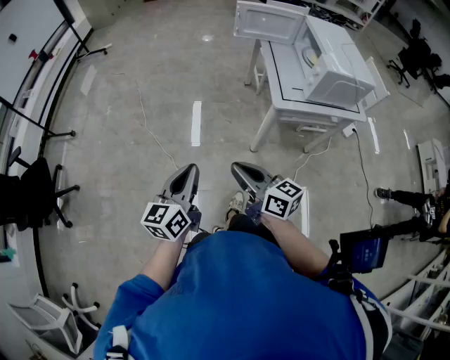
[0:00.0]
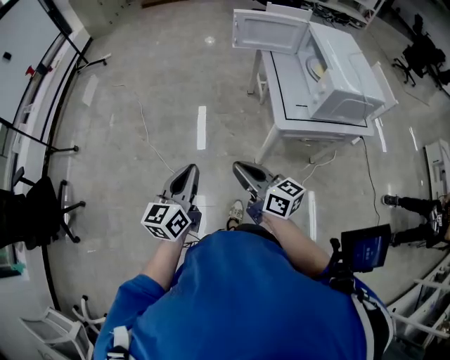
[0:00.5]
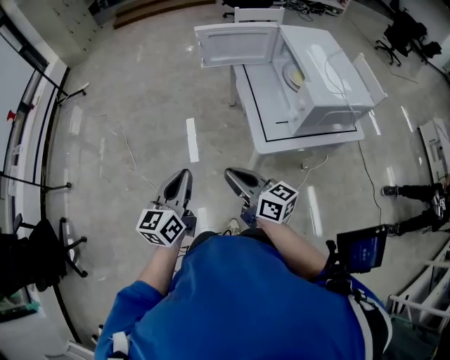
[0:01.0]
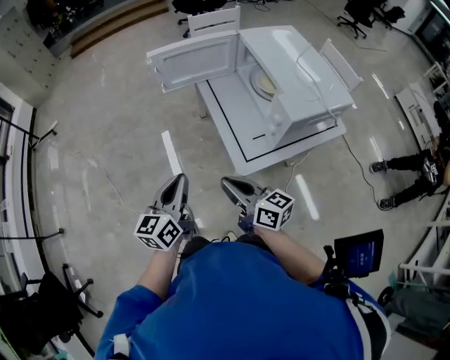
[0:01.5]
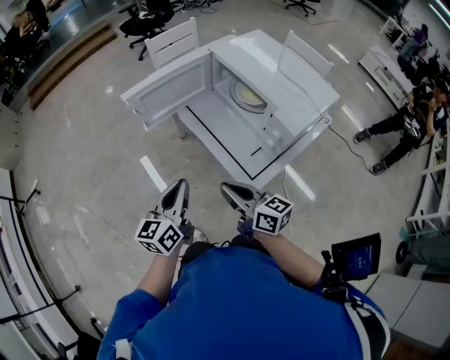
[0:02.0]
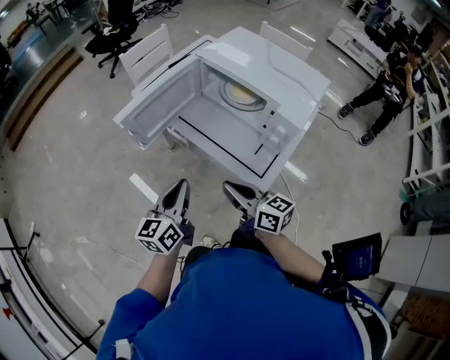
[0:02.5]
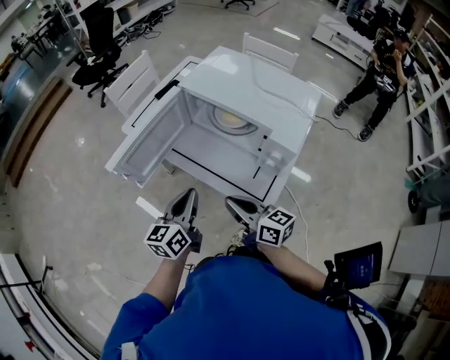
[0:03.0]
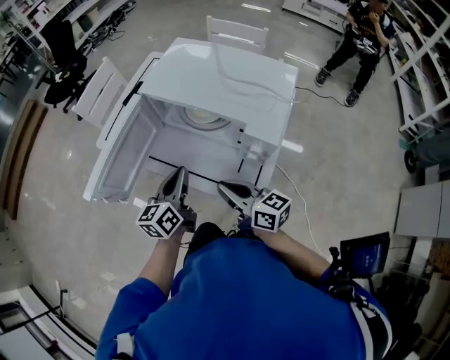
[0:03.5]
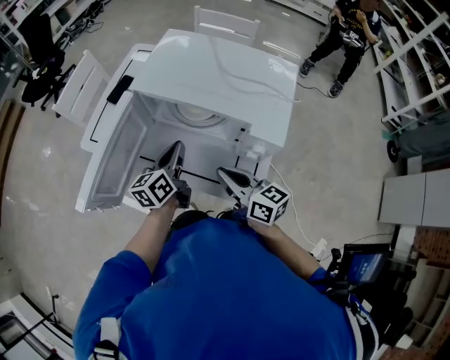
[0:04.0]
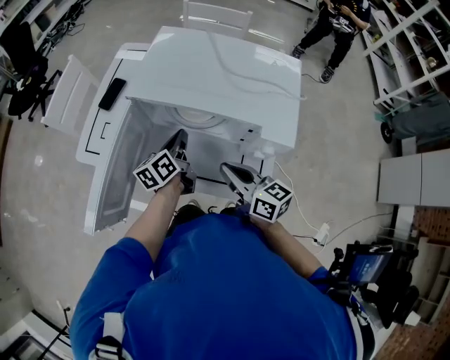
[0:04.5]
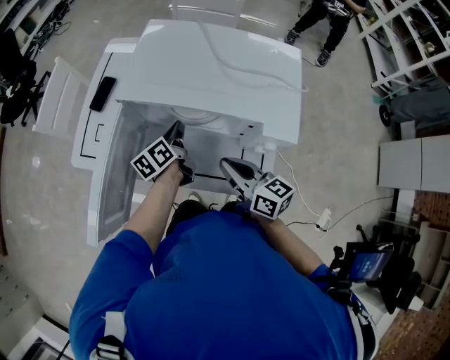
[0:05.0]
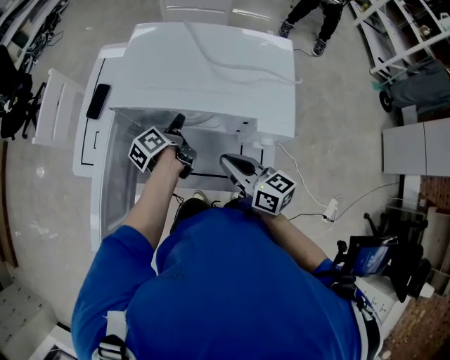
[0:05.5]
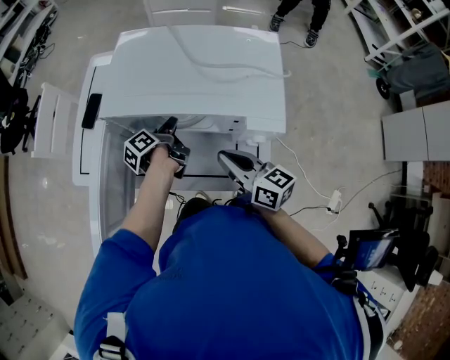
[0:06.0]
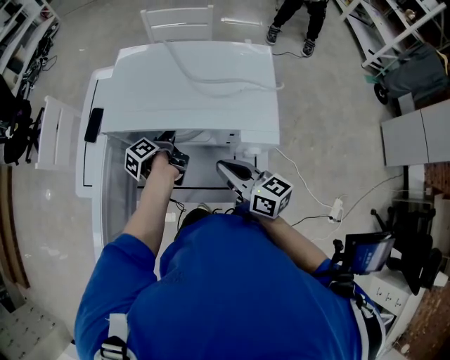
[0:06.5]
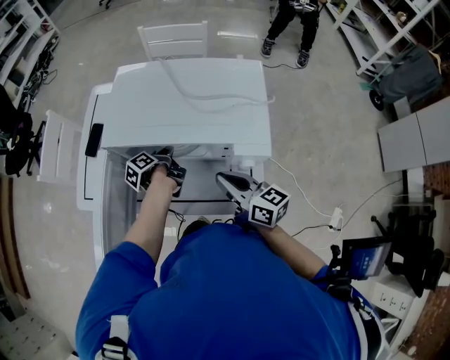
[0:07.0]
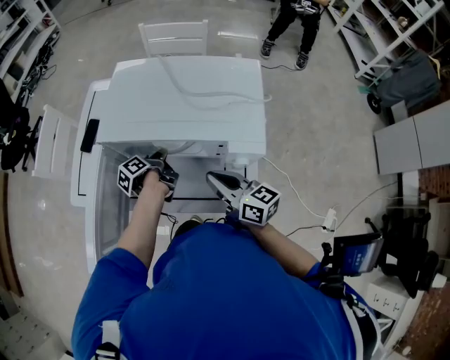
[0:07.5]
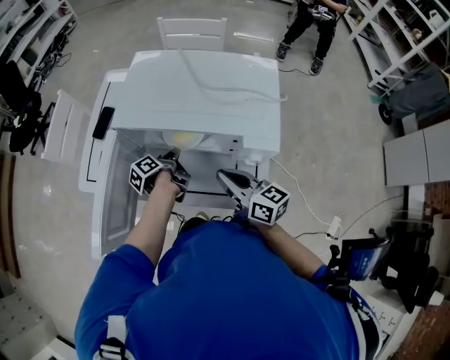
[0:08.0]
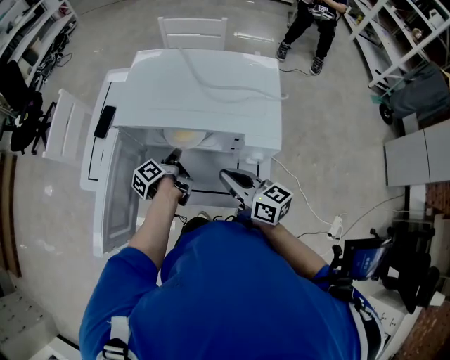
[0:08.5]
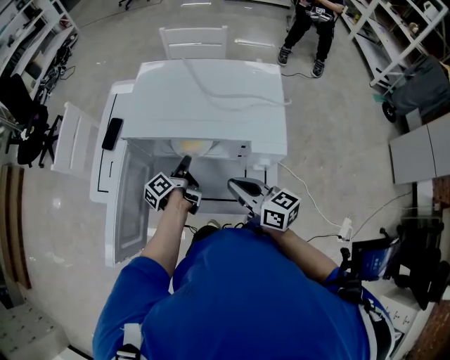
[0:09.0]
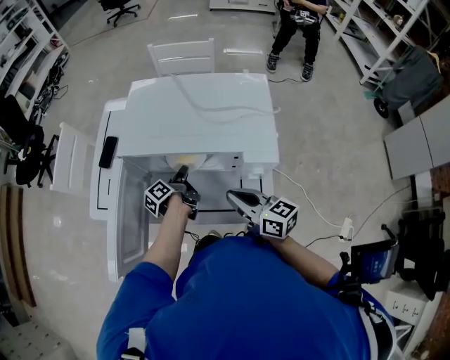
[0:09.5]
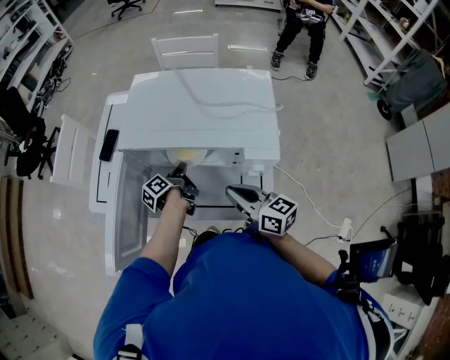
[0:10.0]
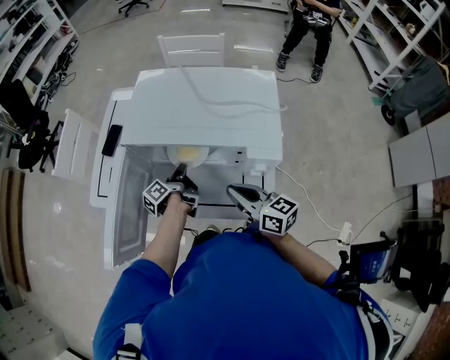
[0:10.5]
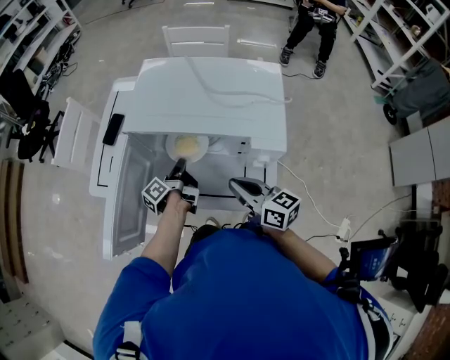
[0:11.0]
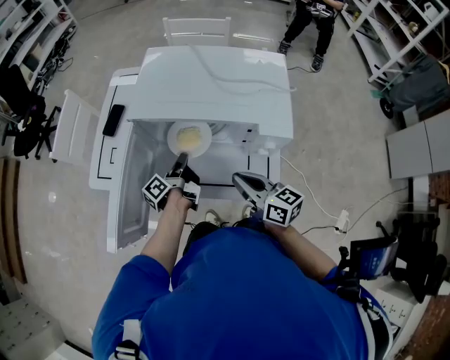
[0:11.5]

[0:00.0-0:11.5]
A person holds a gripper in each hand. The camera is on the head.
0:00.0 to 0:02.0: The two grippers travel together, about 50 cm. The left gripper swivels approximately 40 degrees, while the right gripper changes its angle by roughly 40 degrees.
0:02.0 to 0:04.0: The right gripper moves some 20 cm, and changes its angle by about 40 degrees, while the left gripper shifts by some 30 cm, and turns by about 30 degrees.
0:04.0 to 0:06.0: The left gripper moves forward and downward, about 15 cm, rotates around the line of its fingers by some 40 degrees, counterclockwise from behind, and opens its fingers.
0:06.0 to 0:07.5: The left gripper closes up.
0:07.5 to 0:09.5: The left gripper opens up.
0:09.5 to 0:11.5: The left gripper shifts by roughly 5 cm, and closes its fingers.

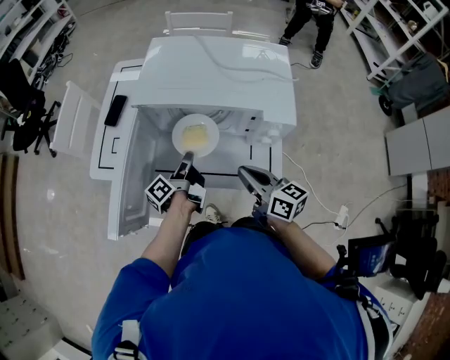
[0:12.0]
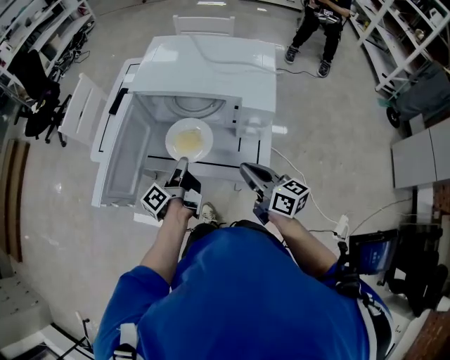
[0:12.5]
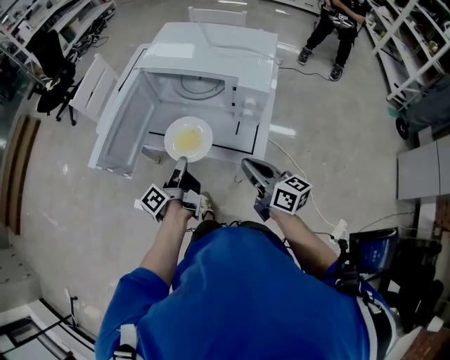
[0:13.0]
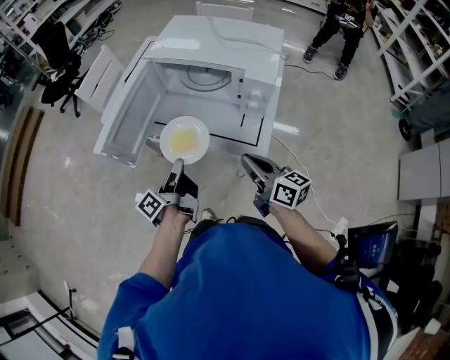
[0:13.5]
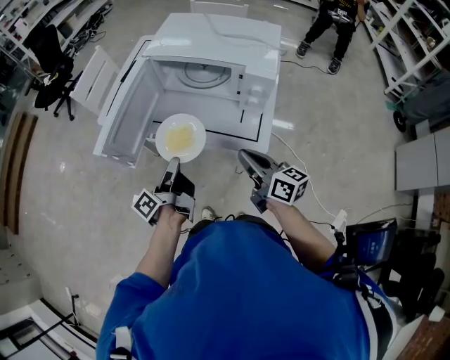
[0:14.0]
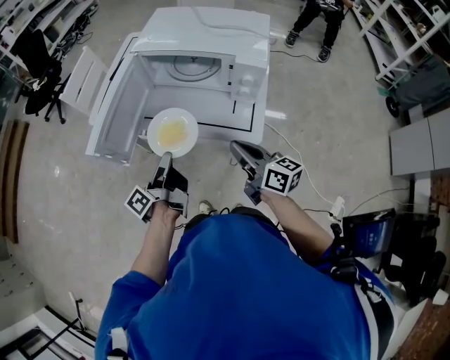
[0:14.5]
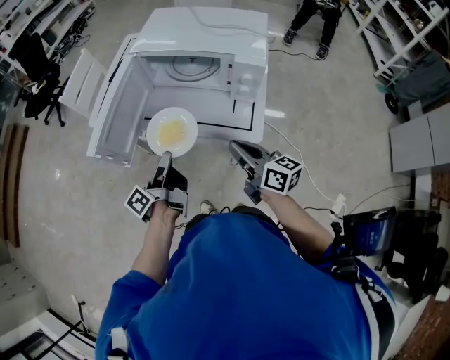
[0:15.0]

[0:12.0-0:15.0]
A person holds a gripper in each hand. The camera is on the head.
0:12.0 to 0:13.5: The right gripper heads backward, covering roughly 10 cm, while the left gripper heads backward, covering some 20 cm.
0:13.5 to 0:15.0: The grippers stay close to where they were, moving slightly.

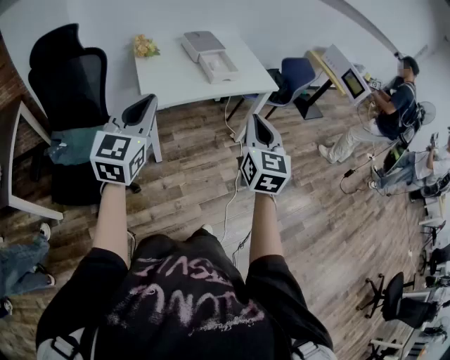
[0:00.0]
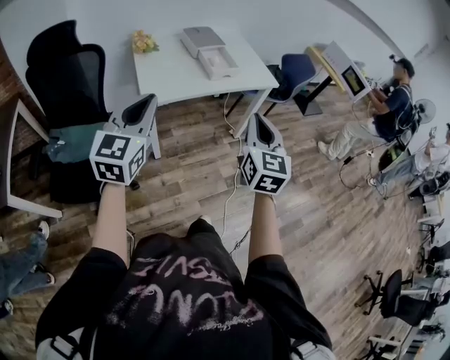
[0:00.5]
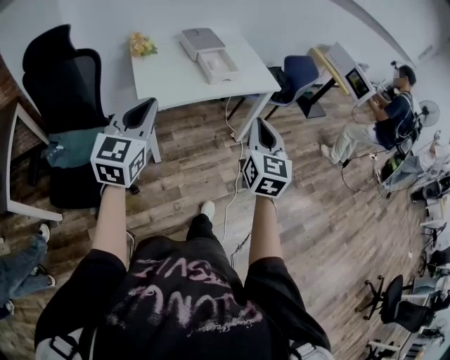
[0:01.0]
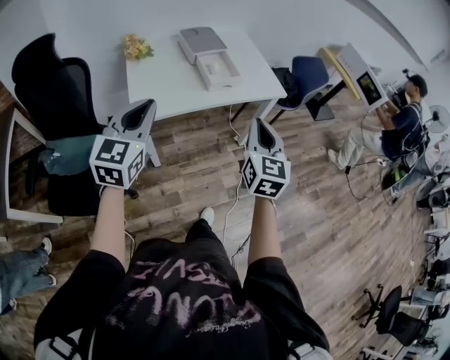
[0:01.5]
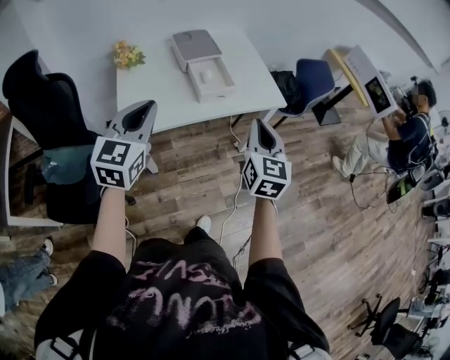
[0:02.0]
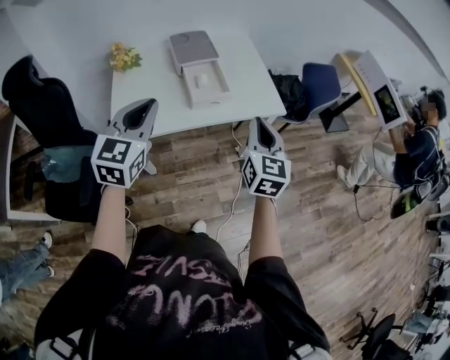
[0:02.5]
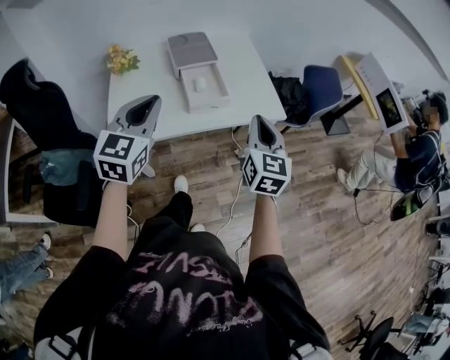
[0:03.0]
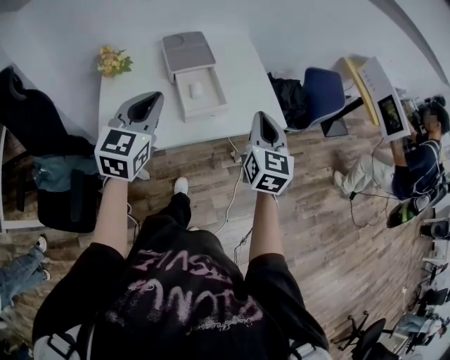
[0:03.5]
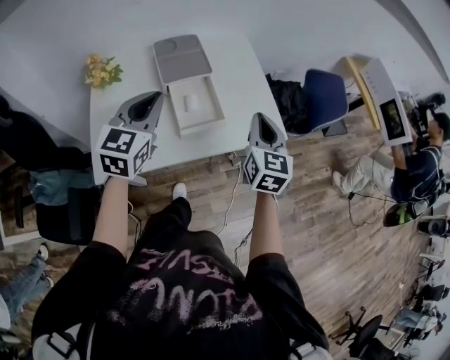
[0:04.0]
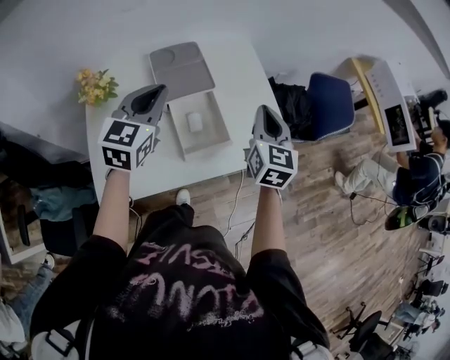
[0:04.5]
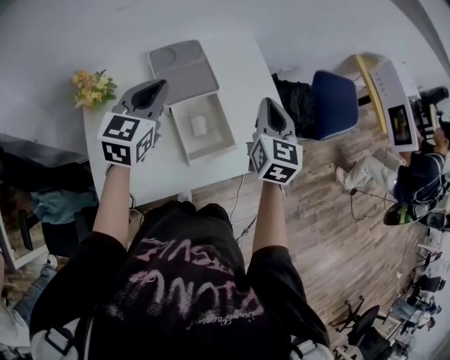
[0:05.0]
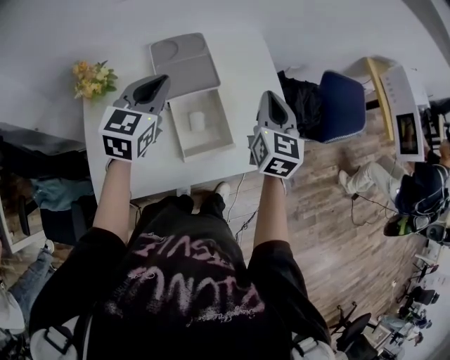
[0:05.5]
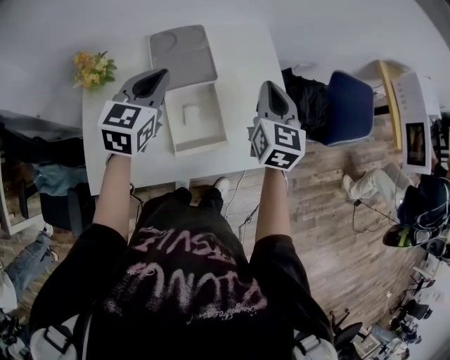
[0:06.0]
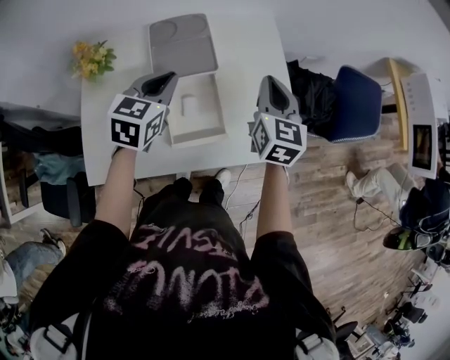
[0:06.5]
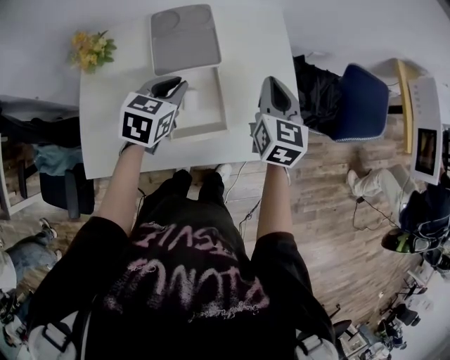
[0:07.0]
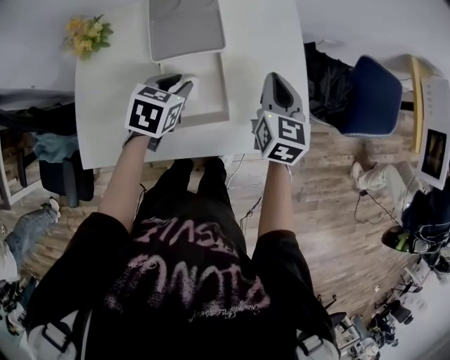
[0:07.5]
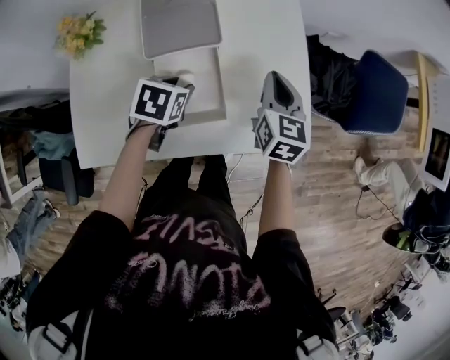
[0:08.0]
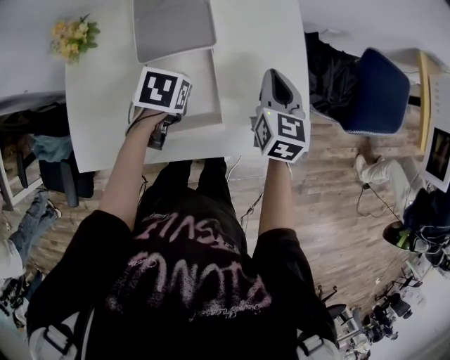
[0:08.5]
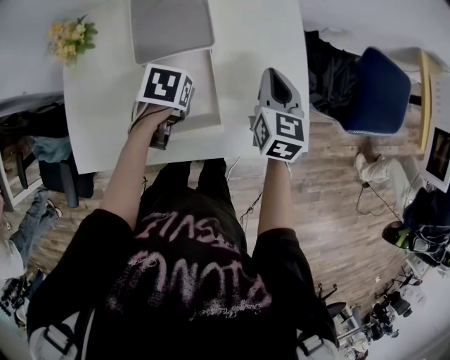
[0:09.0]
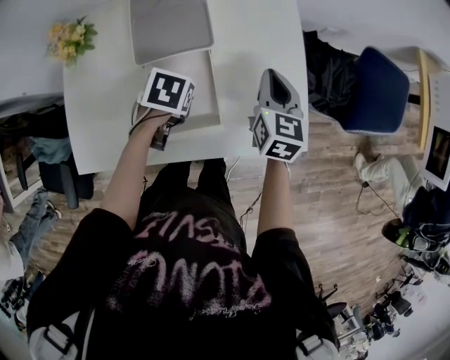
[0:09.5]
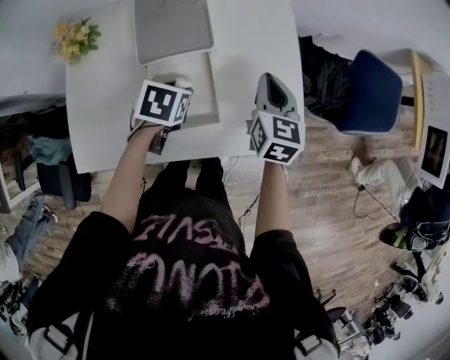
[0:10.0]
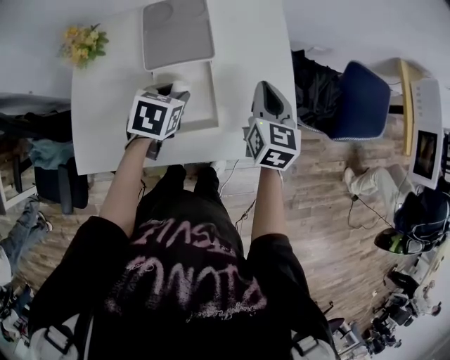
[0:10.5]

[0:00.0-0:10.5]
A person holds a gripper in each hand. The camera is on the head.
0:00.0 to 0:02.0: The grippers both shift forward by about 25 cm.
0:02.0 to 0:04.0: Both grippers travel together forward, approximately 25 cm.
0:04.0 to 0:06.5: The left gripper is displaced forward and downward by about 20 cm, while the right gripper is displaced forward by about 20 cm.
0:06.5 to 0:08.5: The right gripper moves downward, approximately 10 cm; the left gripper heads downward, covering some 20 cm, tilts its fingers some 40 degrees downward, and opens up.
0:08.5 to 0:10.5: The left gripper goes roughly 5 cm upward.

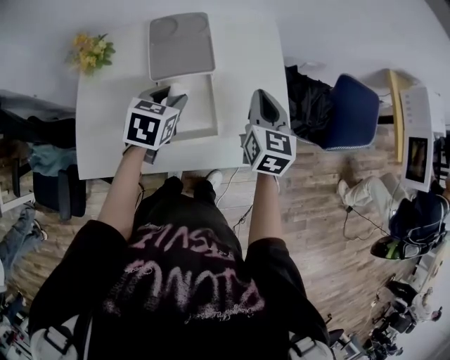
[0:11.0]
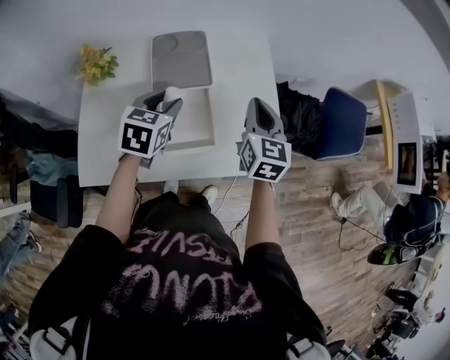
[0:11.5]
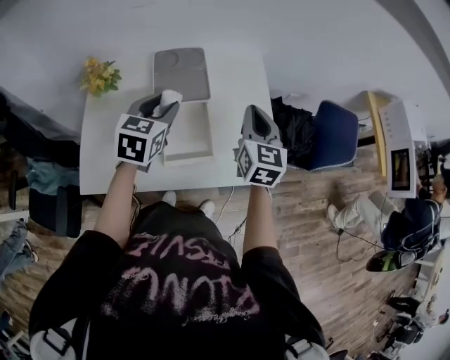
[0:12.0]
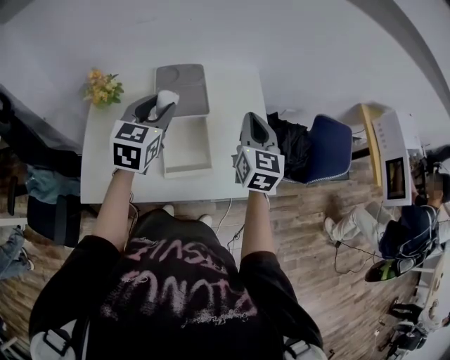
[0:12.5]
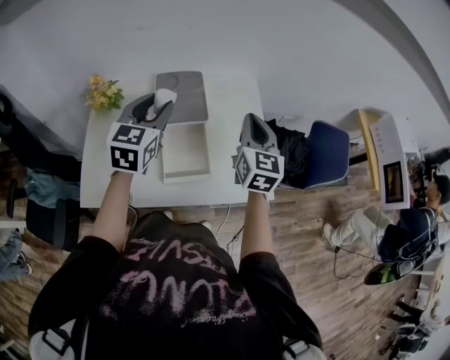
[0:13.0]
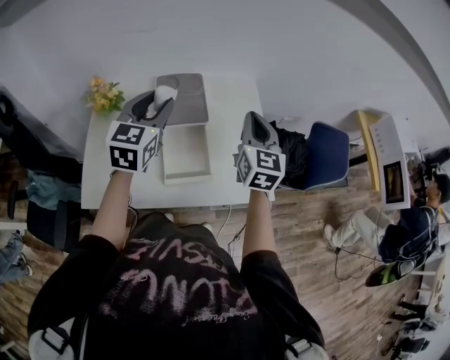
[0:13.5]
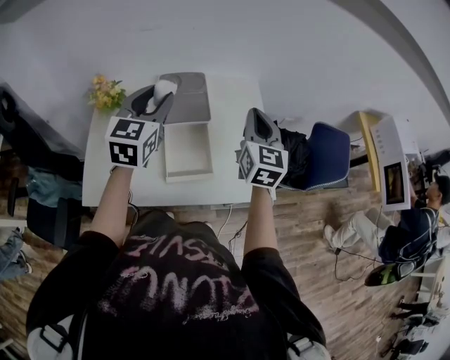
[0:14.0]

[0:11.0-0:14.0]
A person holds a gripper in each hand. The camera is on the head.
0:11.0 to 0:12.5: The left gripper is displaced upward by about 15 cm, and rotates some 30 degrees. The right gripper moves upward, some 10 cm.
0:12.5 to 0:14.0: The left gripper travels upward by some 5 cm.
